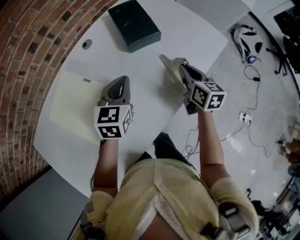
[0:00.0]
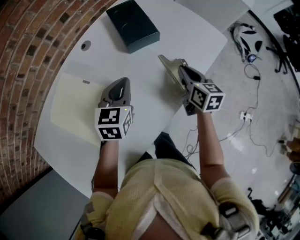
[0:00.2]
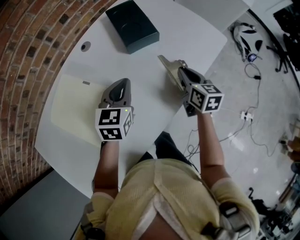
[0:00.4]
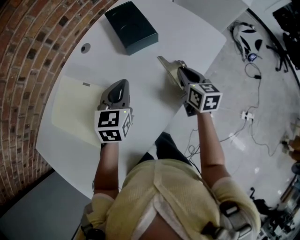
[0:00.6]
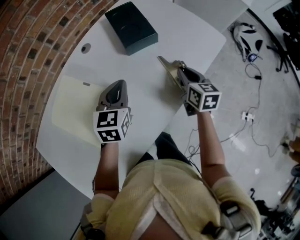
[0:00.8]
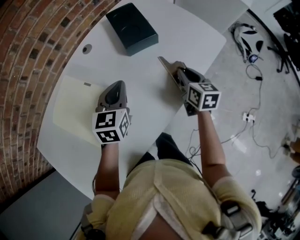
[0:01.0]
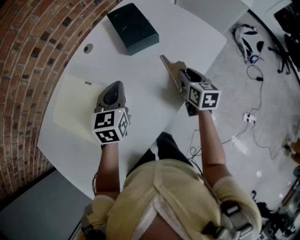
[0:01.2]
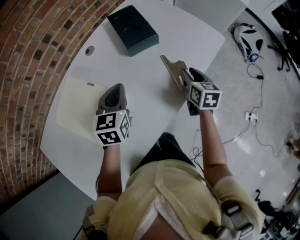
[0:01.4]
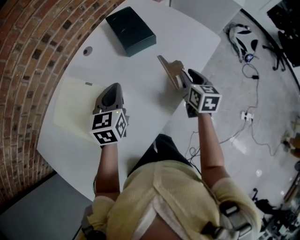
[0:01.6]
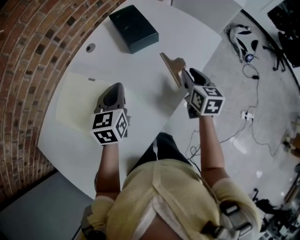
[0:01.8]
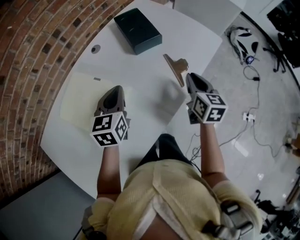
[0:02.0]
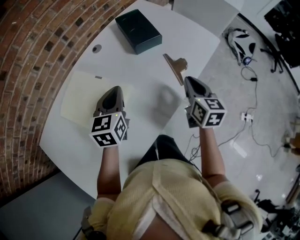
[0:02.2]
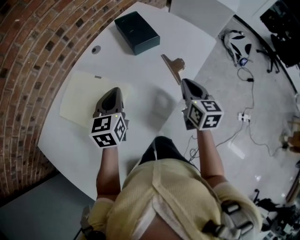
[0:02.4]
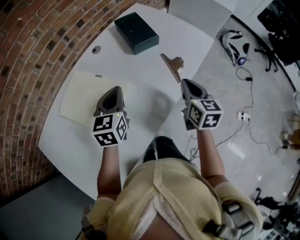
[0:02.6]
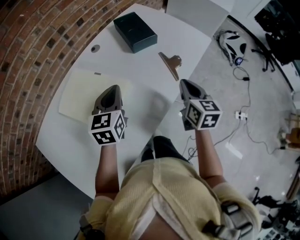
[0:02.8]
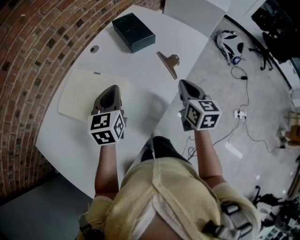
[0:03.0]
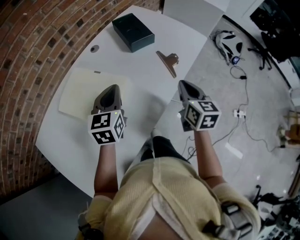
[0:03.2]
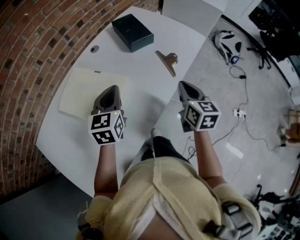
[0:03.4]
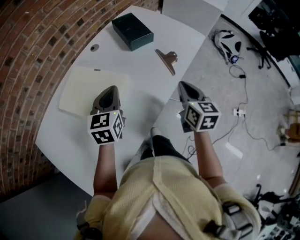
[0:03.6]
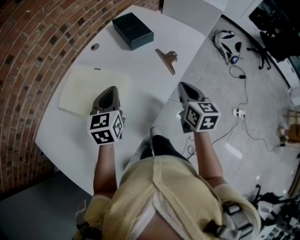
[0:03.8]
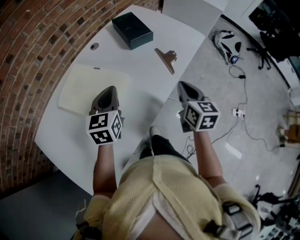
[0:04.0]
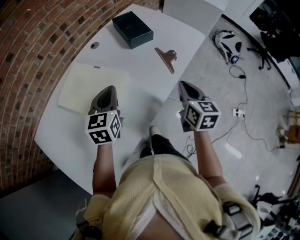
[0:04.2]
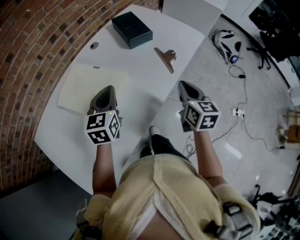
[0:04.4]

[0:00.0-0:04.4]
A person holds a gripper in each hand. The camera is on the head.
0:00.0 to 0:01.4: The right gripper opens its fingers.
0:01.4 to 0:03.0: The right gripper travels backward and upward by roughly 20 cm, and closes; the left gripper shifts roughly 10 cm backward and upward.
0:03.0 to 0:04.4: There are only small adjustments of the grippers.

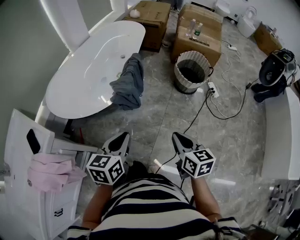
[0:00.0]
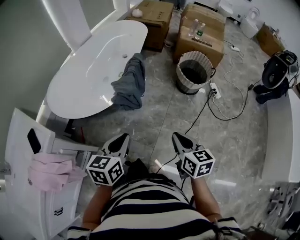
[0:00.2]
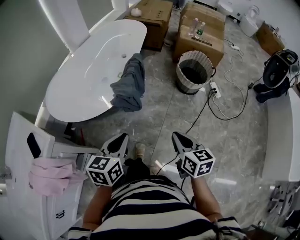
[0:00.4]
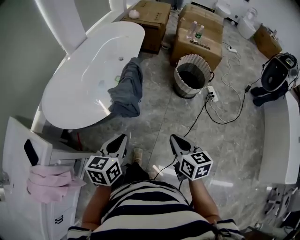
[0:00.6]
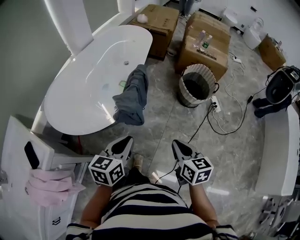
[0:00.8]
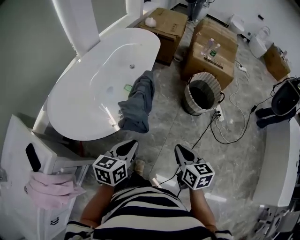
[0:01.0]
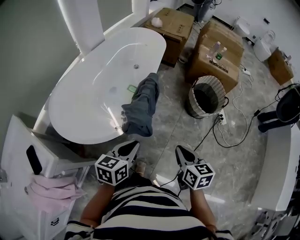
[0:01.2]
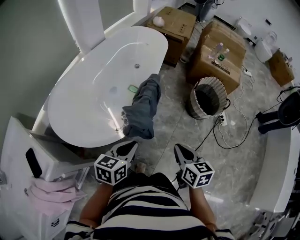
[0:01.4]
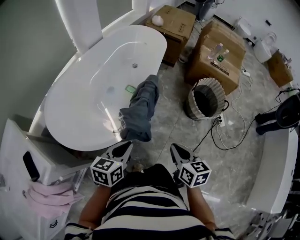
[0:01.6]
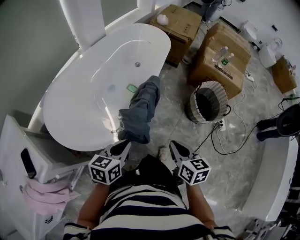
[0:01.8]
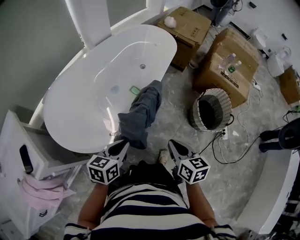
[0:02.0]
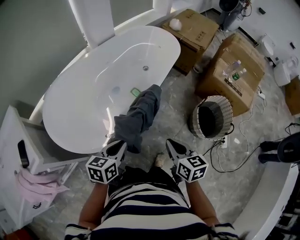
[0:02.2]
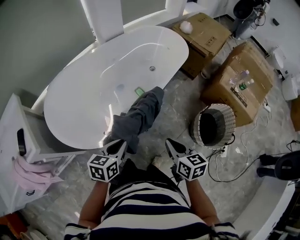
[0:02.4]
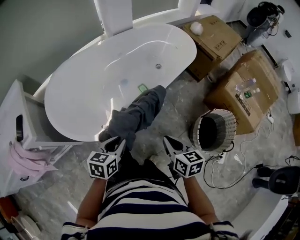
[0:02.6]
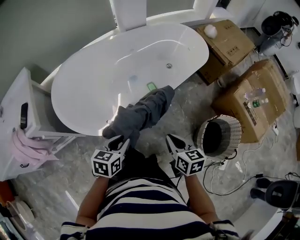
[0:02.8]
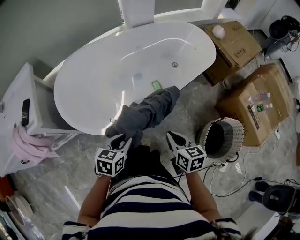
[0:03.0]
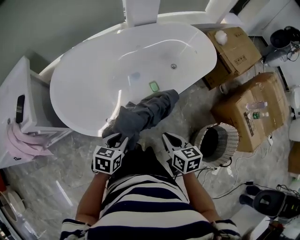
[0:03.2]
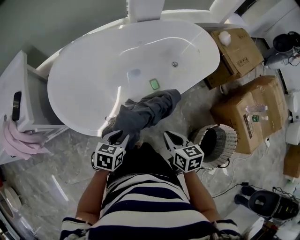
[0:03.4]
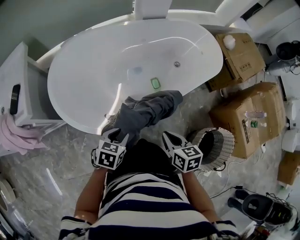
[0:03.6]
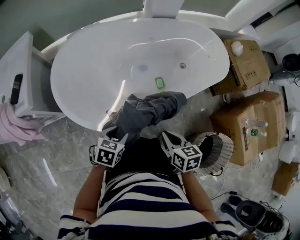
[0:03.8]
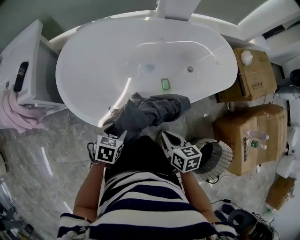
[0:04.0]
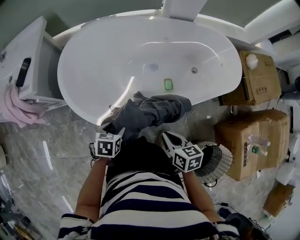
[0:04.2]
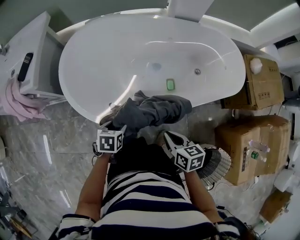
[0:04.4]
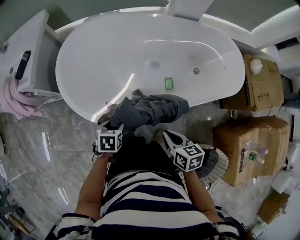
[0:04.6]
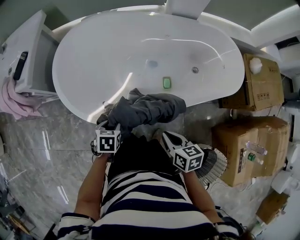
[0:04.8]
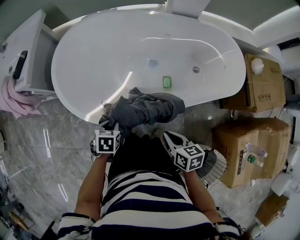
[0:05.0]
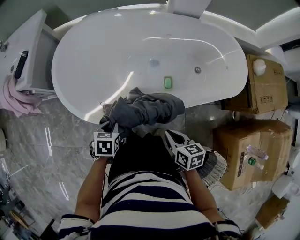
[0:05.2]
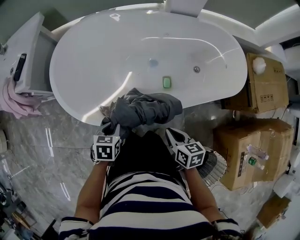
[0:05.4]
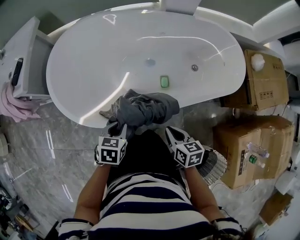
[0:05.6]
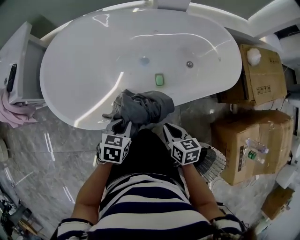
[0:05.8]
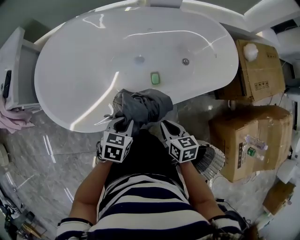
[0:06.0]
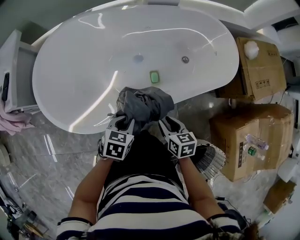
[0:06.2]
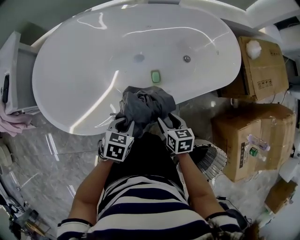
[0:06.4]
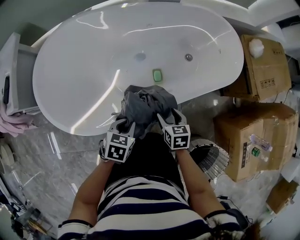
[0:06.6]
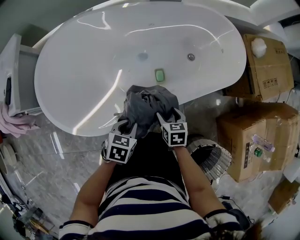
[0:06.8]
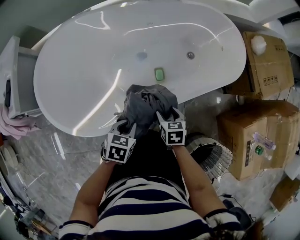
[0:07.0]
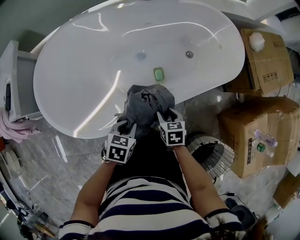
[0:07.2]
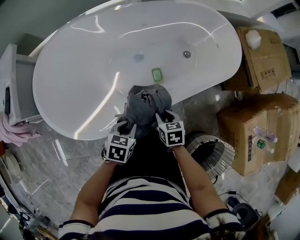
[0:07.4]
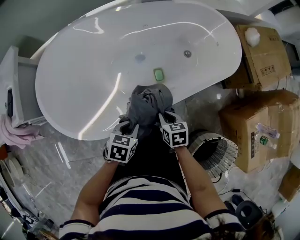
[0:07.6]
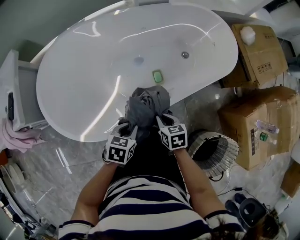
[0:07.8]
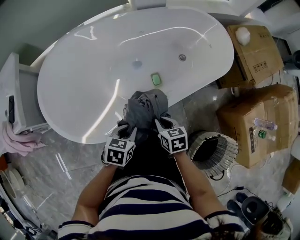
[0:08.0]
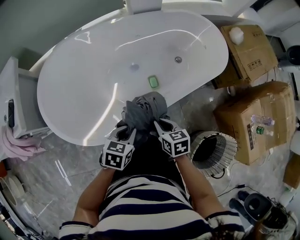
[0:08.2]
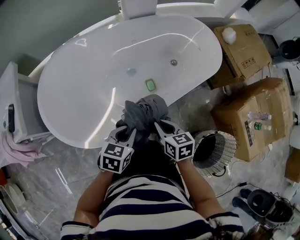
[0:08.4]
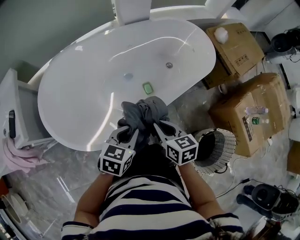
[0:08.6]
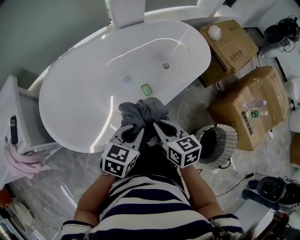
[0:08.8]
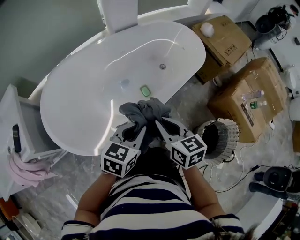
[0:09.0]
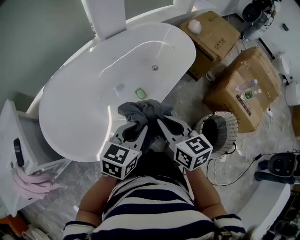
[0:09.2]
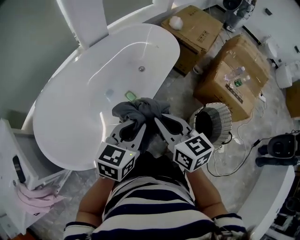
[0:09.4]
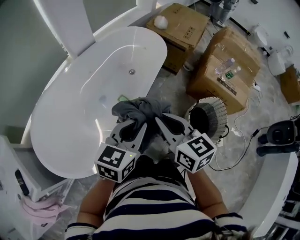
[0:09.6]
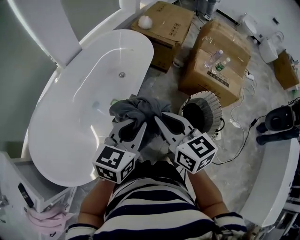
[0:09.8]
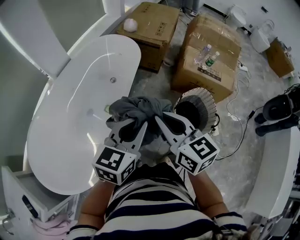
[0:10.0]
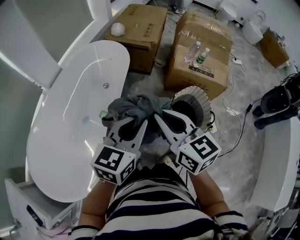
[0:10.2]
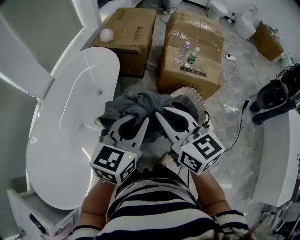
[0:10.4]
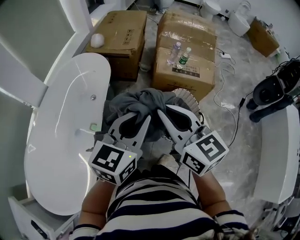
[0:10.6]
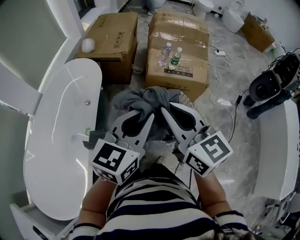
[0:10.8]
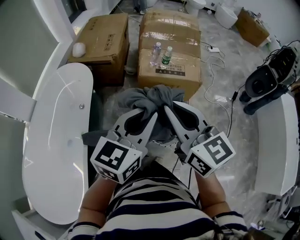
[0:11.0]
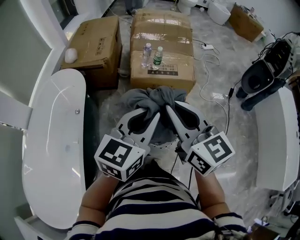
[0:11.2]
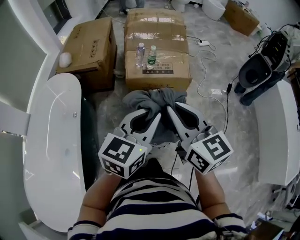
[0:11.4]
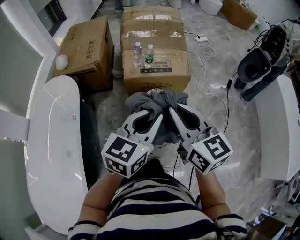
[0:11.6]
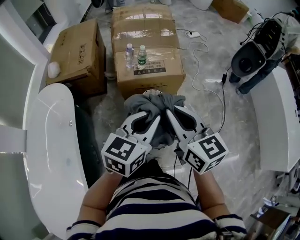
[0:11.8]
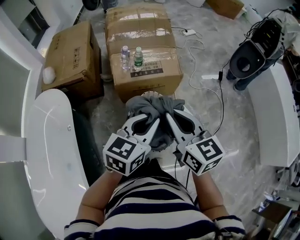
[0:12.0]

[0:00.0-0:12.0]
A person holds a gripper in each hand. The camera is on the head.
0:00.0 to 0:01.6: Both grippers move forward, about 20 cm.
0:01.6 to 0:03.0: The right gripper changes place by approximately 20 cm, and turns by approximately 40 degrees; the left gripper moves some 15 cm, and rotates roughly 40 degrees.
0:03.0 to 0:04.4: The left gripper shifts some 10 cm downward, changes its angle by roughly 40 degrees, and opens, while the right gripper moves roughly 10 cm, and turns by roughly 30 degrees.
0:04.4 to 0:06.0: The right gripper is displaced to the right and downward by roughly 15 cm. The left gripper is displaced to the right by some 20 cm, and closes up.
0:06.0 to 0:07.6: The right gripper travels downward by some 5 cm, and opens and closes again.
0:07.6 to 0:09.0: The grippers both shift upward by about 20 cm. The right gripper turns by about 30 degrees, while the left gripper changes its angle by roughly 30 degrees.
0:09.0 to 0:10.4: The right gripper changes place by roughly 30 cm, and turns by approximately 40 degrees. The left gripper ends up approximately 30 cm from where it was, and changes its angle by approximately 40 degrees.
0:10.4 to 0:12.0: The right gripper ends up about 30 cm from where it was, and turns by some 30 degrees. Meanwhile the left gripper shifts by some 30 cm, and swivels some 30 degrees.

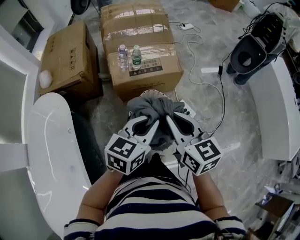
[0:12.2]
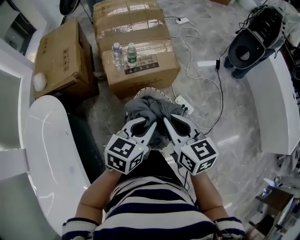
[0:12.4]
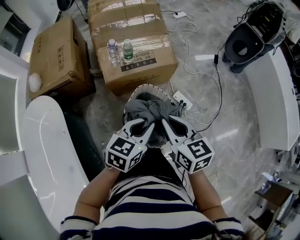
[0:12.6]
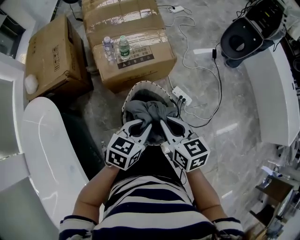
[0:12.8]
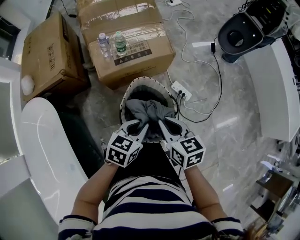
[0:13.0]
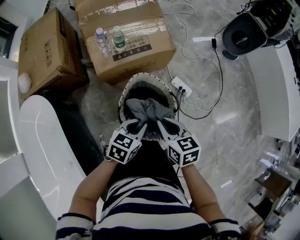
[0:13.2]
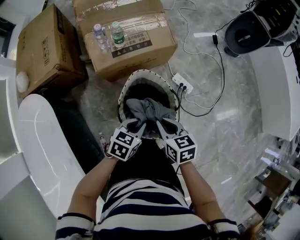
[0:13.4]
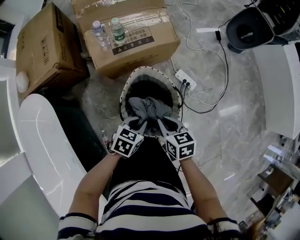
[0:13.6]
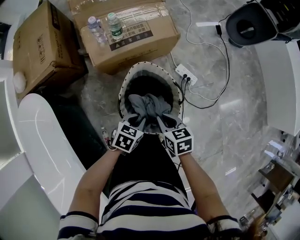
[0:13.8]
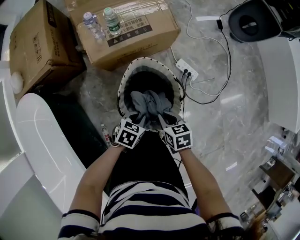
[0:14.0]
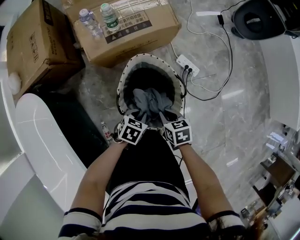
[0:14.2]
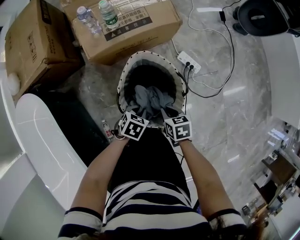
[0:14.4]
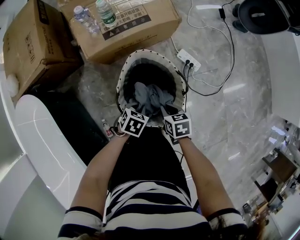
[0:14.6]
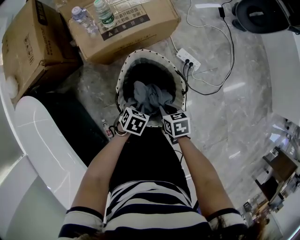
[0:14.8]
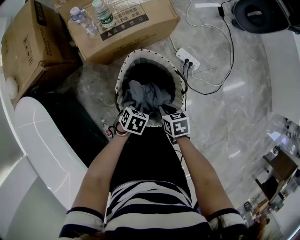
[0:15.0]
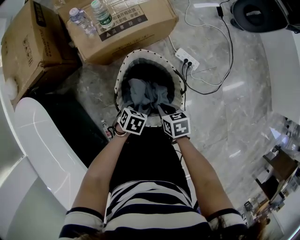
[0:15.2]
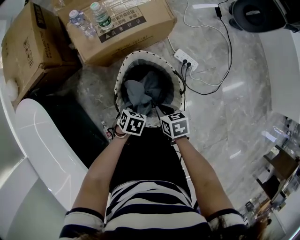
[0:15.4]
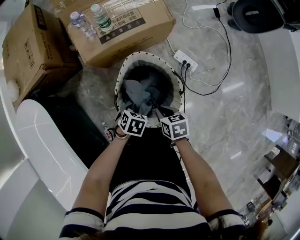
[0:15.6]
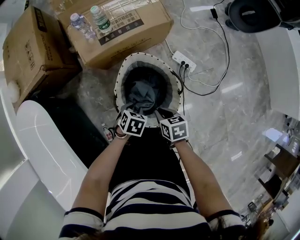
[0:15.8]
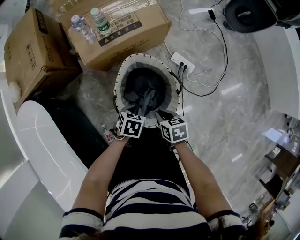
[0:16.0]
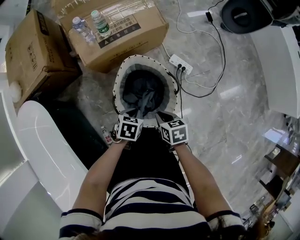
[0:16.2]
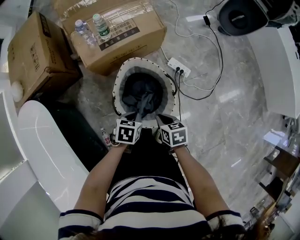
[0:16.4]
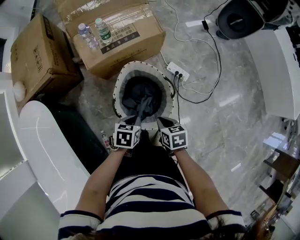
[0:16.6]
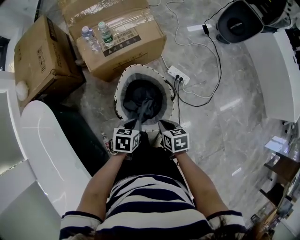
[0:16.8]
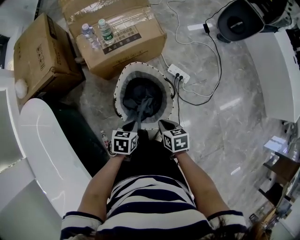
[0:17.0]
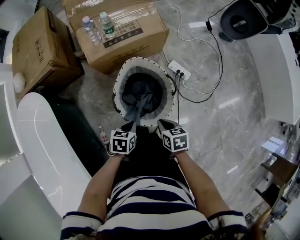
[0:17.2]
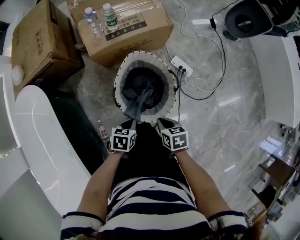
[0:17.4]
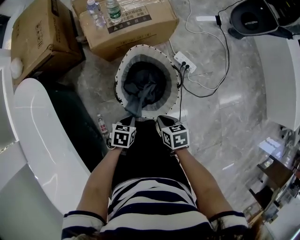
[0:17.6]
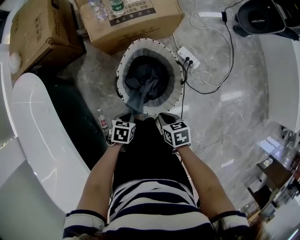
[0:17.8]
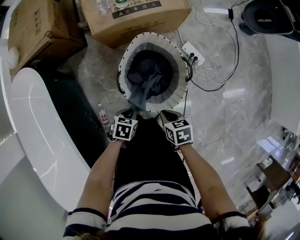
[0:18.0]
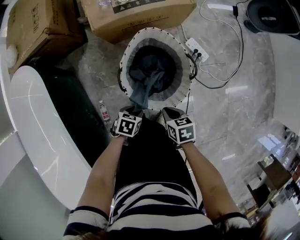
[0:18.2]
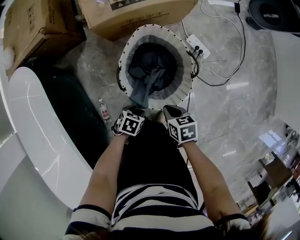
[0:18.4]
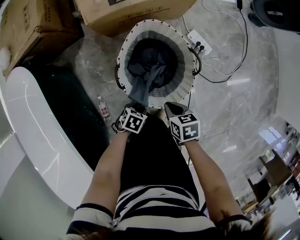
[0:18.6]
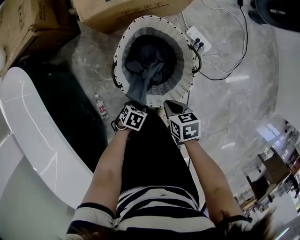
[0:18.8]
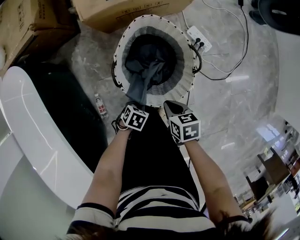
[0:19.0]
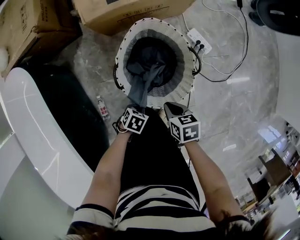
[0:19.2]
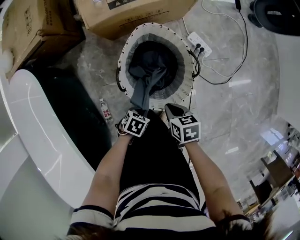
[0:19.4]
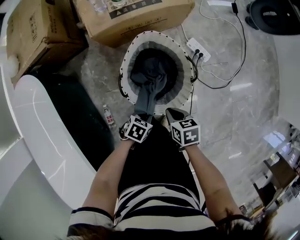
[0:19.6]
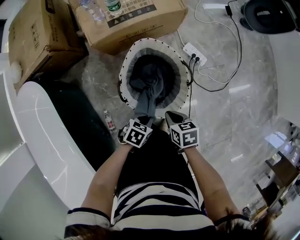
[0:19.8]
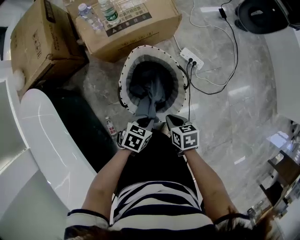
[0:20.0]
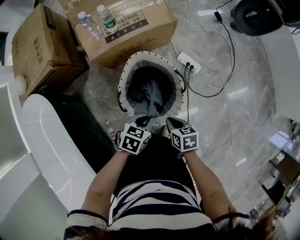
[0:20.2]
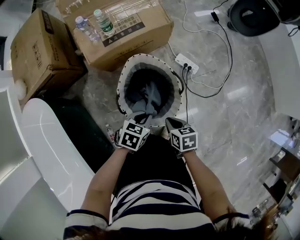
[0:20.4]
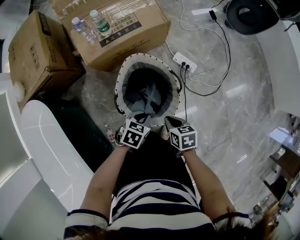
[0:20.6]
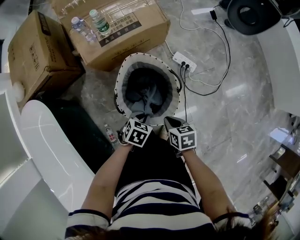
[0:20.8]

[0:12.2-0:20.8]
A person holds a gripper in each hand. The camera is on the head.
0:12.2 to 0:13.6: Both grippers travel together downward, roughly 25 cm. The left gripper swivels roughly 30 degrees, while the right gripper changes its angle by approximately 30 degrees.
0:13.6 to 0:15.0: Both grippers move downward, roughly 15 cm. The left gripper changes its angle by about 20 degrees.
0:15.0 to 0:16.6: Both grippers move upward, approximately 10 cm. The left gripper changes its angle by some 20 degrees.
0:16.6 to 0:18.0: The left gripper shifts roughly 15 cm downward, backward and to the left. Meanwhile the right gripper is displaced downward and backward by roughly 10 cm.
0:18.0 to 0:19.4: The left gripper changes place by some 5 cm, and opens and closes again.
0:19.4 to 0:20.8: The right gripper changes place by approximately 5 cm, while the left gripper travels upward by roughly 10 cm.
